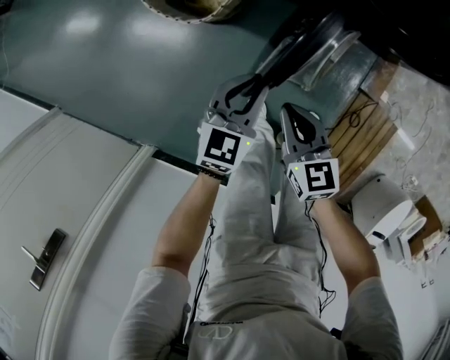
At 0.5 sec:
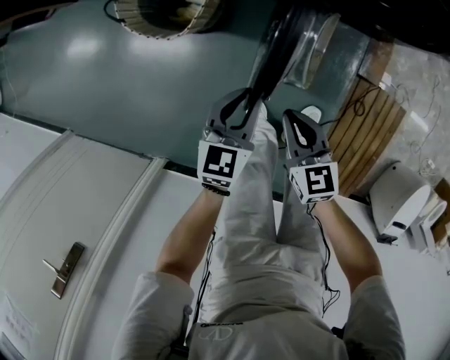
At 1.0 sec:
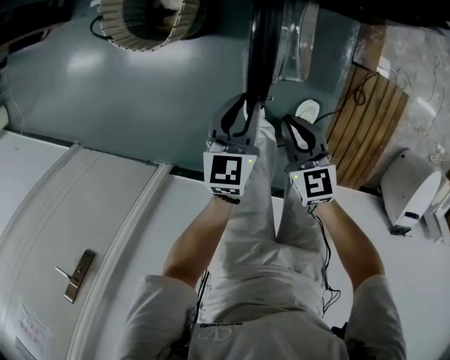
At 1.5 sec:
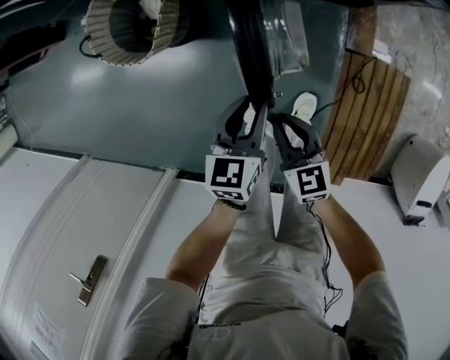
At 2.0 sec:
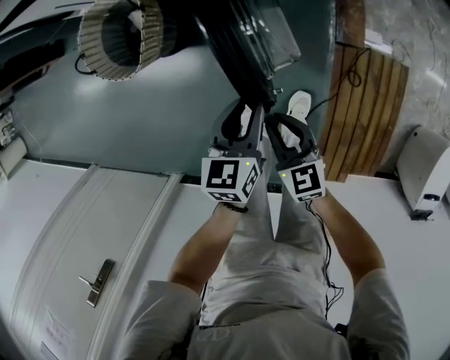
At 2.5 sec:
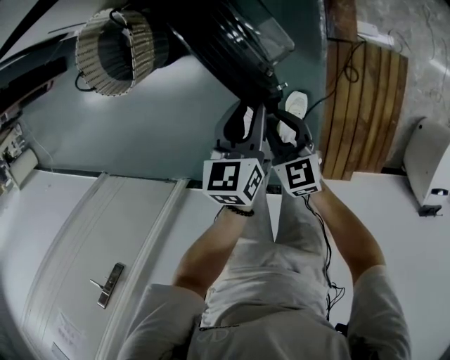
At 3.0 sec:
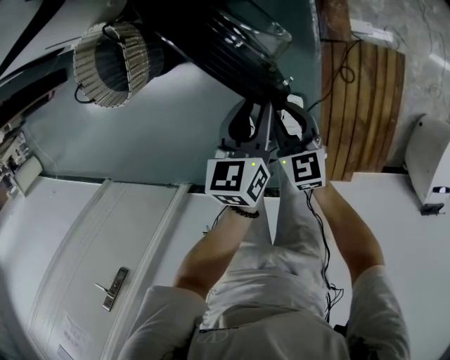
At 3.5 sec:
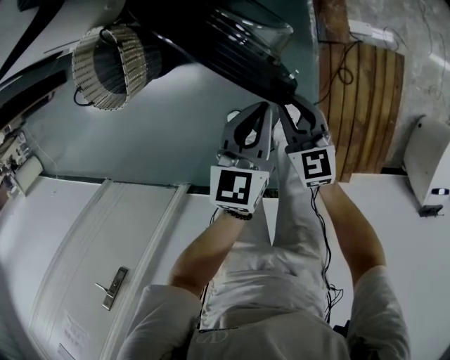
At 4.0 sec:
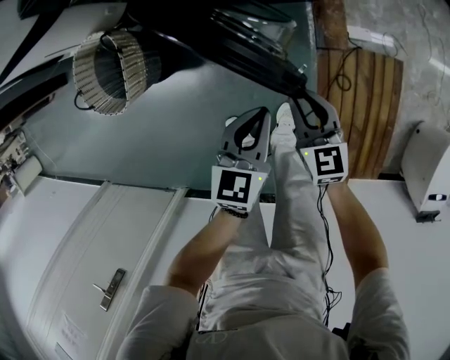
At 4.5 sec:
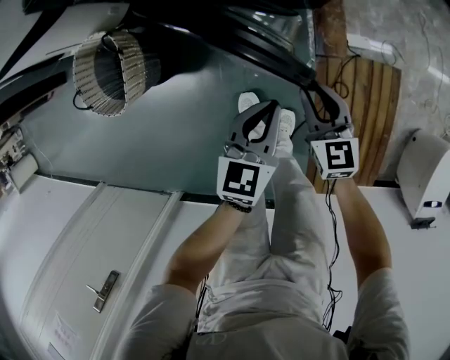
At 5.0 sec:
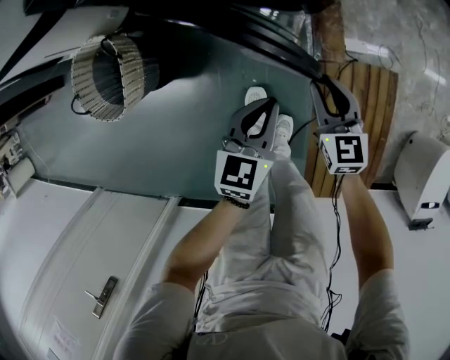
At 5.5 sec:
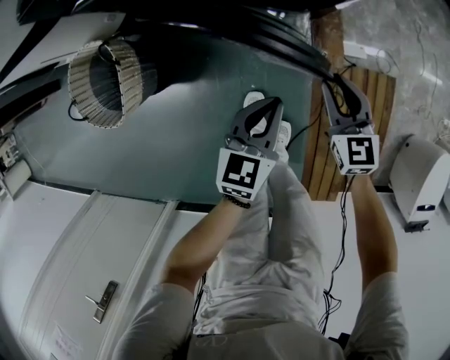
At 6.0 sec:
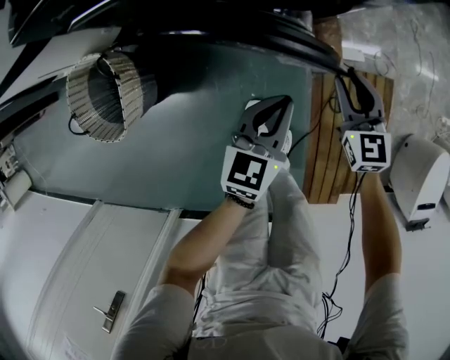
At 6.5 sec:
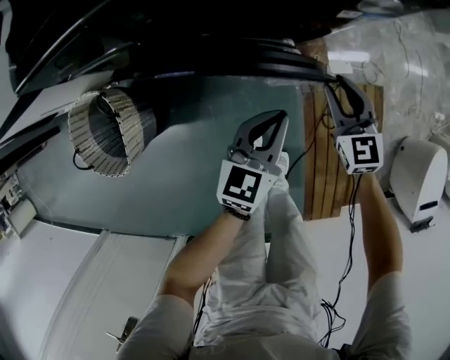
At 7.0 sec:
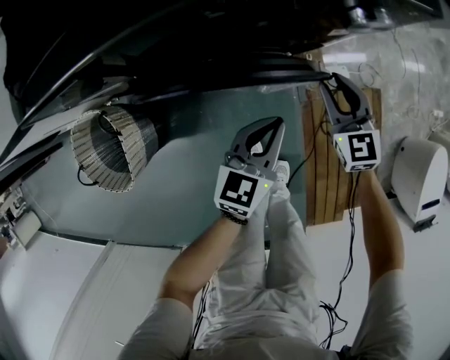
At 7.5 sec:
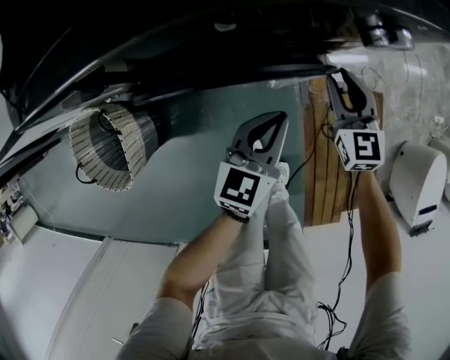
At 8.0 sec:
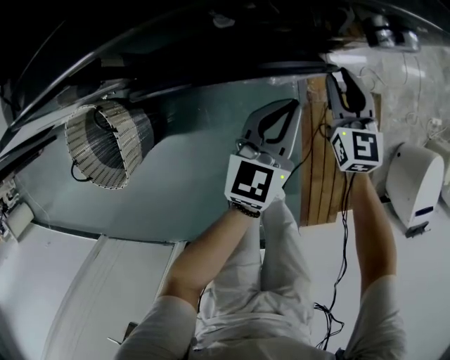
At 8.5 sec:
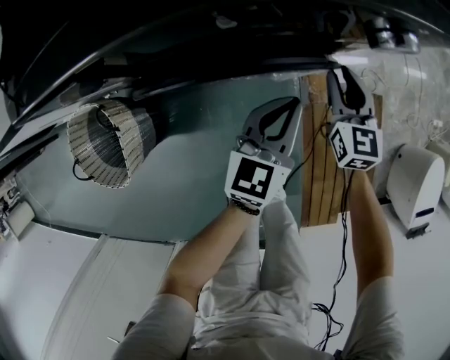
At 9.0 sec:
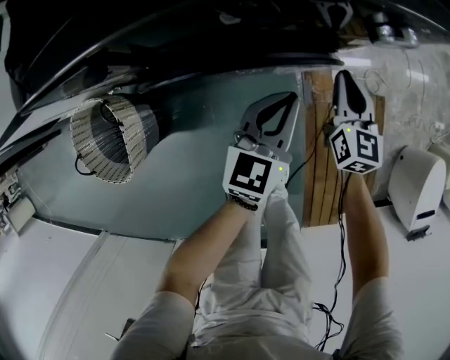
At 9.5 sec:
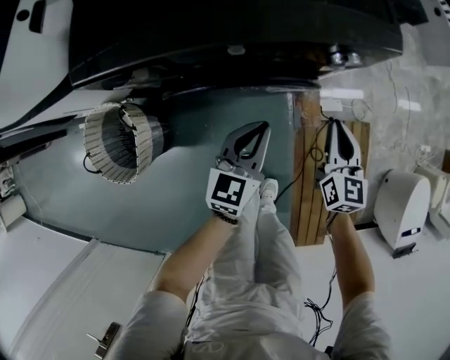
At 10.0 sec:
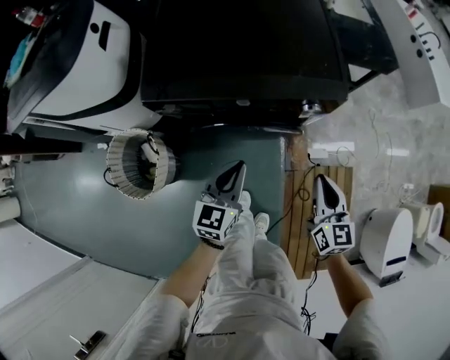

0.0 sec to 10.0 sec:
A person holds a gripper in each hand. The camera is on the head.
0.0 sec to 2.0 sec: The right gripper goes approximately 20 cm to the right and backward. Meanwhile the left gripper travels to the right by about 20 cm.
2.0 sec to 4.0 sec: The right gripper goes approximately 20 cm to the right and forward. The left gripper shifts approximately 15 cm to the right, and closes up.
4.0 sec to 6.0 sec: The right gripper goes roughly 20 cm forward and to the right. Meanwhile the left gripper travels forward by about 10 cm.
6.0 sec to 8.0 sec: The two grippers go approximately 10 cm forward.
8.0 sec to 10.0 sec: The right gripper is displaced upward and backward by some 30 cm, and closes its fingers. Meanwhile the left gripper heads upward and to the left, covering about 25 cm.

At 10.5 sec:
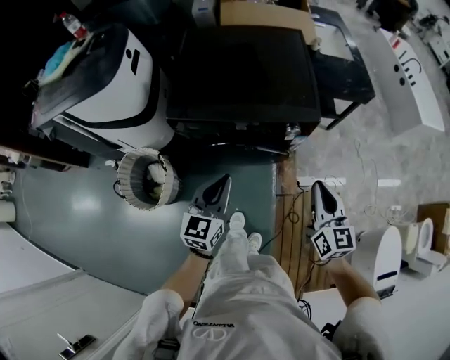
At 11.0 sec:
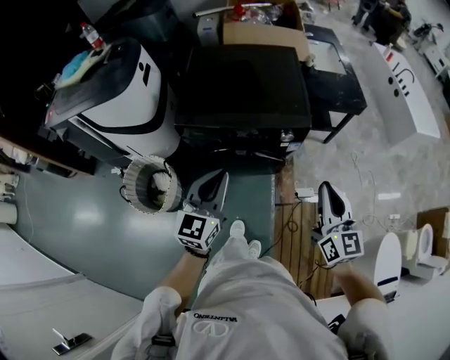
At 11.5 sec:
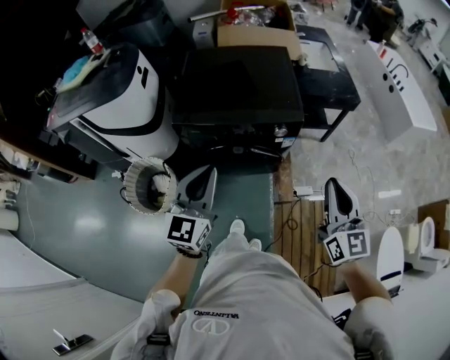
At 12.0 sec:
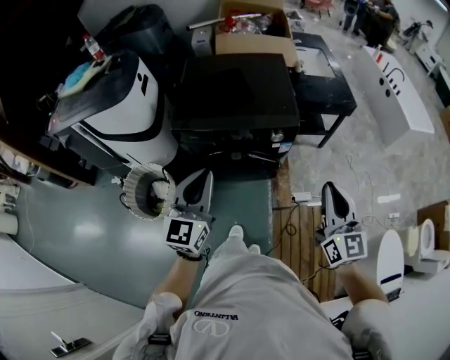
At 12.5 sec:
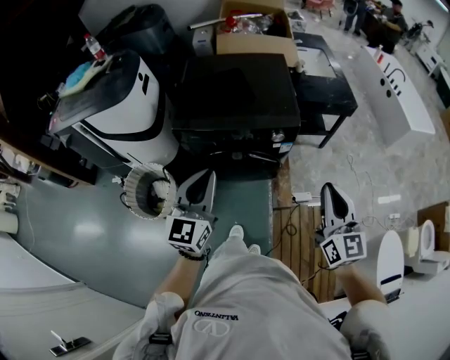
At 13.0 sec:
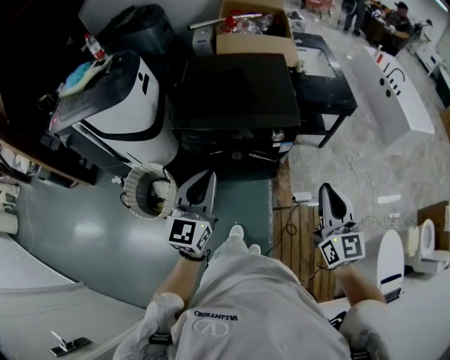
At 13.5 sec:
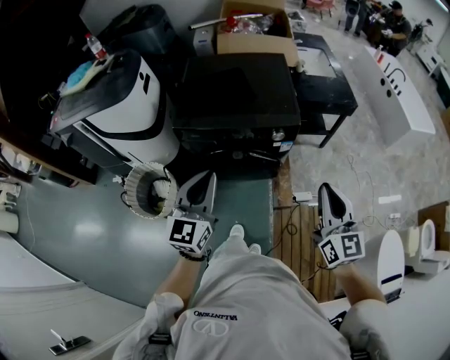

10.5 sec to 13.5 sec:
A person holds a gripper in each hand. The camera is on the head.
10.5 sec to 12.0 sec: The left gripper heads upward and backward, covering about 20 cm. The right gripper shifts approximately 20 cm upward, backward and to the right.
12.0 sec to 13.5 sec: Both grippers stay put.

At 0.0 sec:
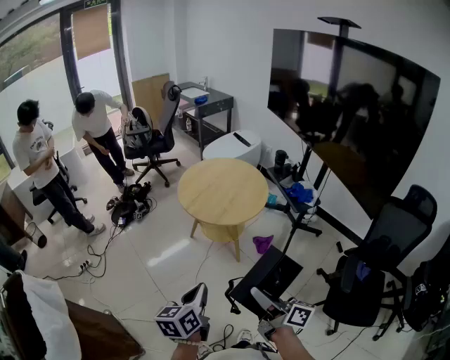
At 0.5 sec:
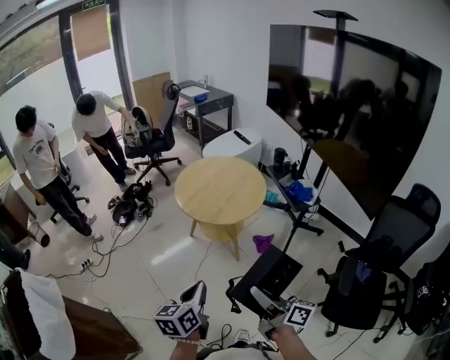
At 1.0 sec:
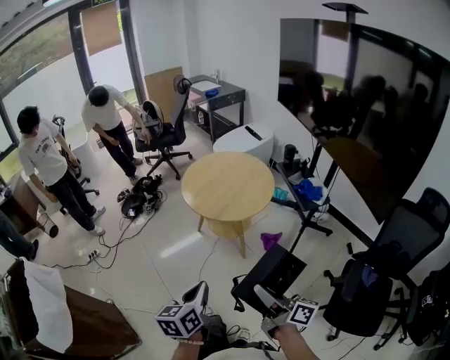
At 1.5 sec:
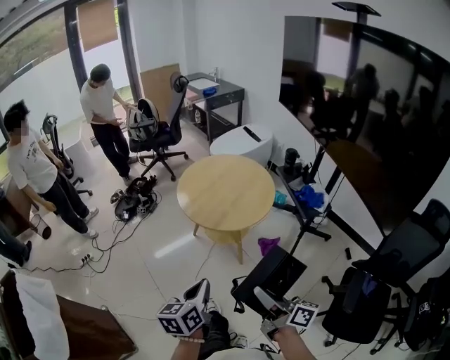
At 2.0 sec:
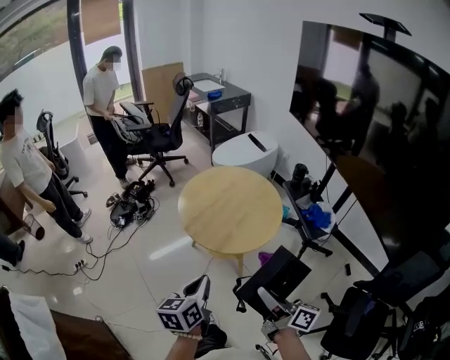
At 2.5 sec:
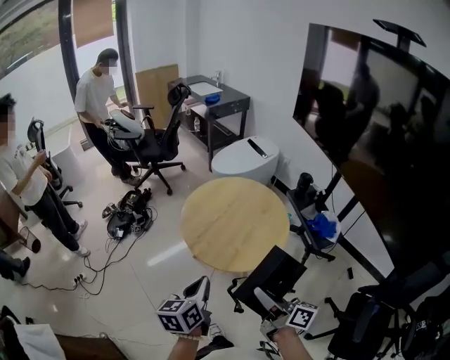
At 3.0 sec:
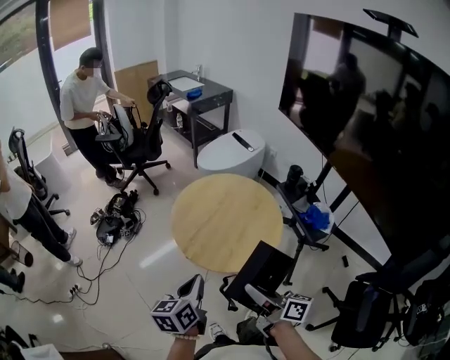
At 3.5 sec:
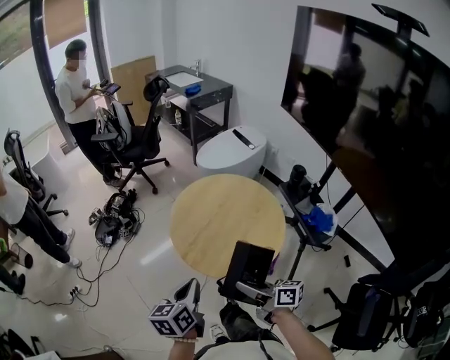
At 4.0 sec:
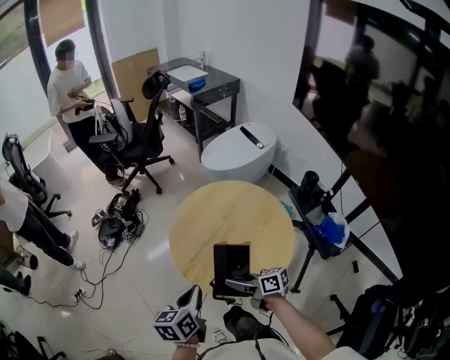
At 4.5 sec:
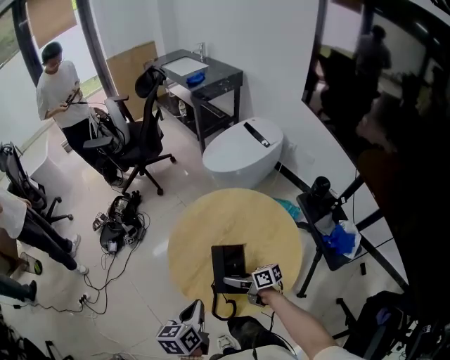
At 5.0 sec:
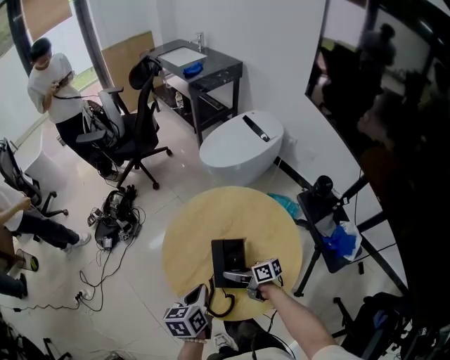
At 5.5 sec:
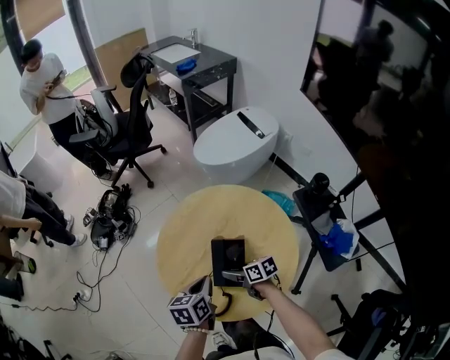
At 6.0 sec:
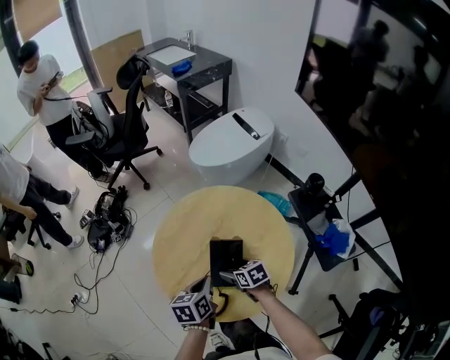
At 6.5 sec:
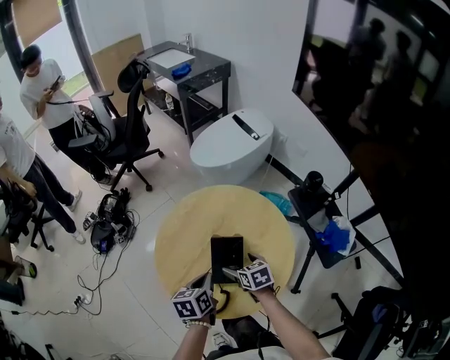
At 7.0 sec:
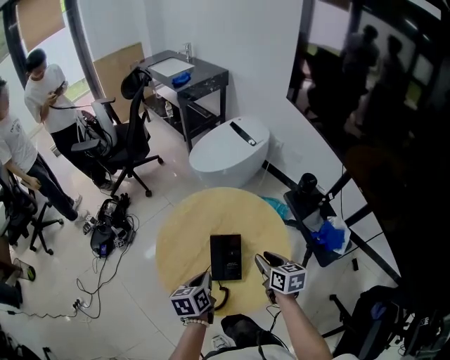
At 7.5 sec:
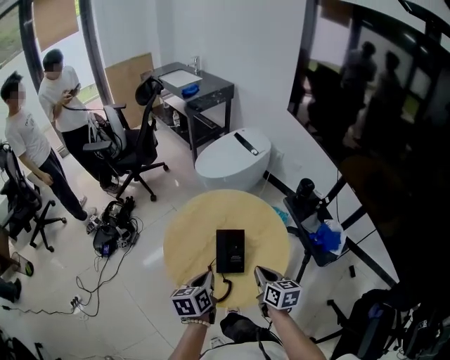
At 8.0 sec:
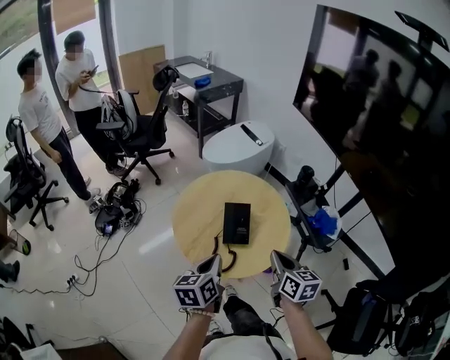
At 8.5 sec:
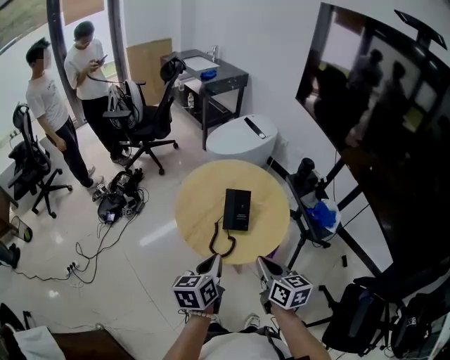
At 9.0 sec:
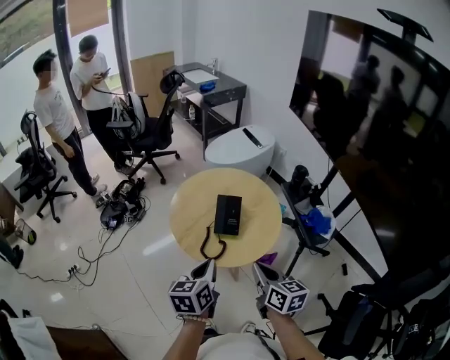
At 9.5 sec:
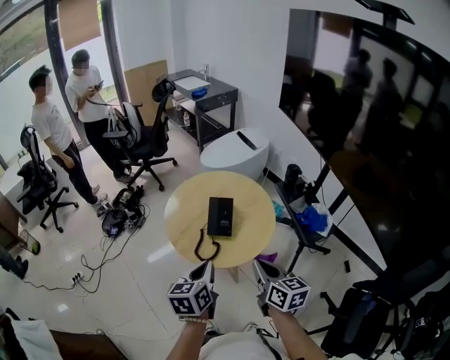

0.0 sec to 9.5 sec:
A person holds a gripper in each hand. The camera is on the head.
0.0 sec to 2.0 sec: Both grippers travel together forward, some 20 cm.
2.0 sec to 4.0 sec: The left gripper heads forward, covering some 20 cm; the right gripper shifts about 35 cm forward and downward, and swivels roughly 40 degrees.
4.0 sec to 5.5 sec: The left gripper is displaced to the right, downward and forward by approximately 20 cm. The right gripper heads downward, forward and to the right, covering some 20 cm, and turns by approximately 20 degrees.
5.5 sec to 7.5 sec: The left gripper moves approximately 5 cm. The right gripper moves upward, some 15 cm, changes its angle by some 40 degrees, and closes its fingers.
7.5 sec to 9.5 sec: The two grippers go some 20 cm backward and upward.

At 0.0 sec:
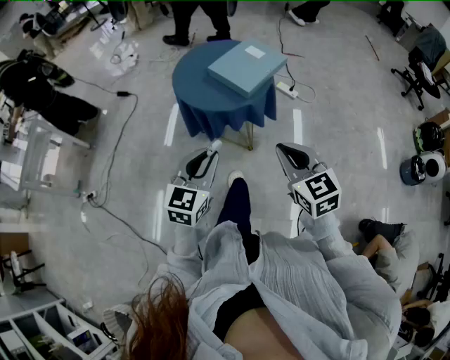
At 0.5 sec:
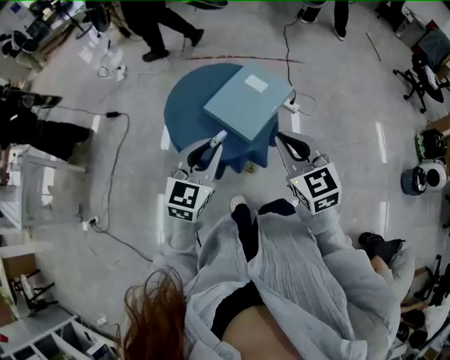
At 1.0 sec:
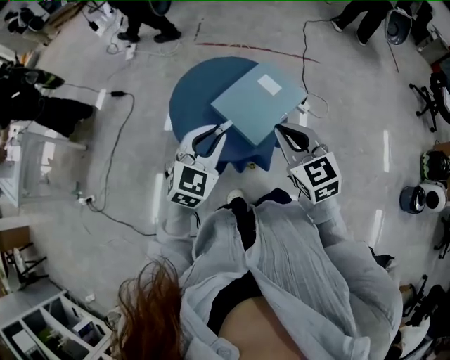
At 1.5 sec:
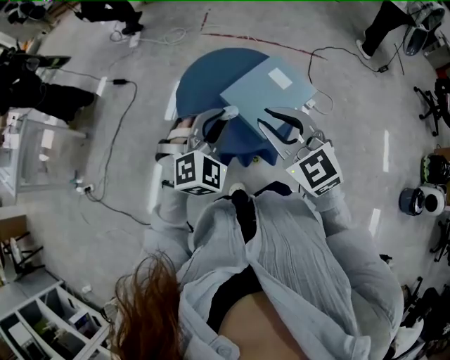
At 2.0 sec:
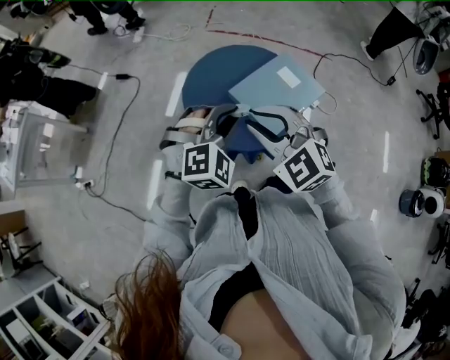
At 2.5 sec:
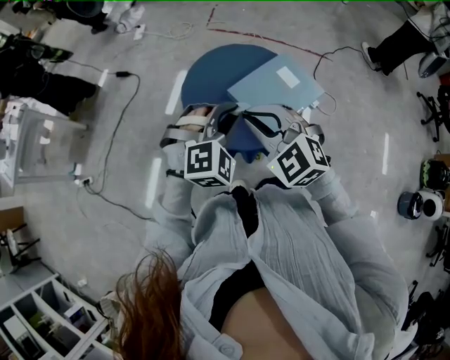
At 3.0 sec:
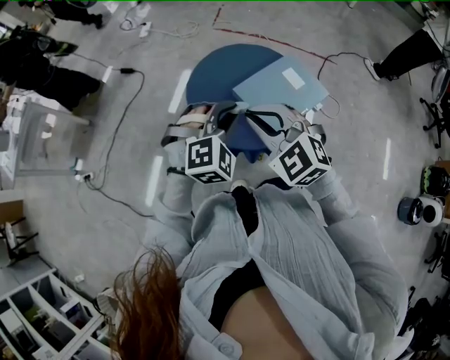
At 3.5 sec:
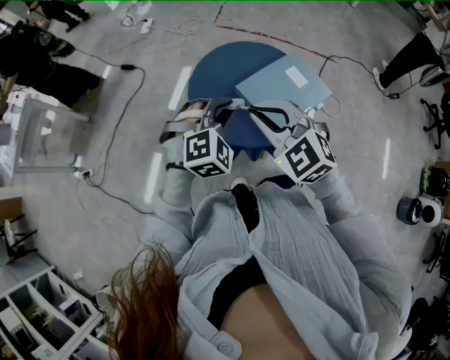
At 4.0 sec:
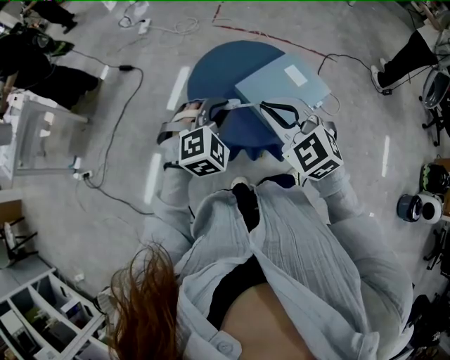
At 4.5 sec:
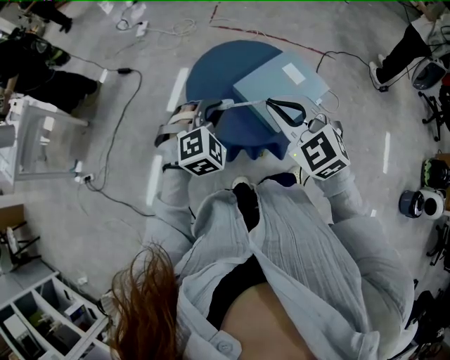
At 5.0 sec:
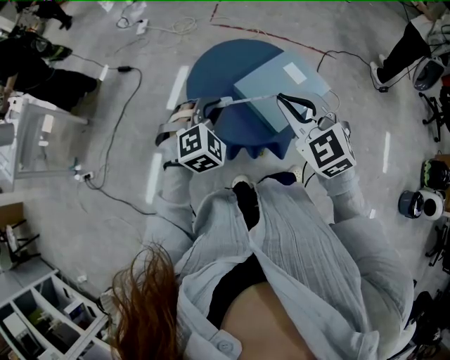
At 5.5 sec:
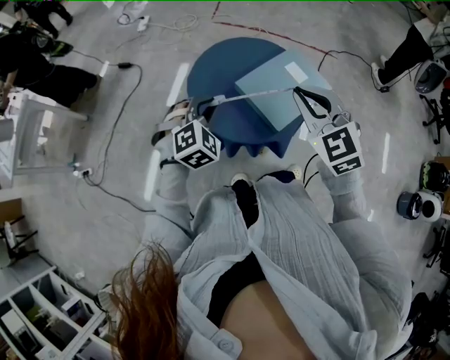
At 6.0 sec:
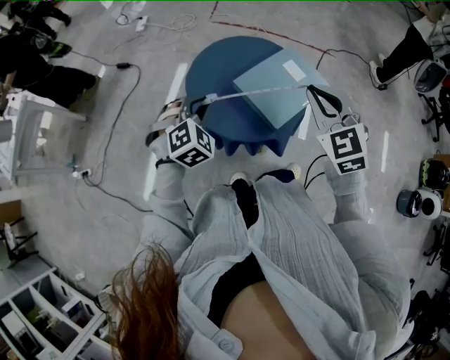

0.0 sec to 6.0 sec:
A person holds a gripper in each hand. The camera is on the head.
0.0 sec to 2.0 sec: The right gripper shifts roughly 30 cm forward and to the left, rotates approximately 40 degrees, and opens up; the left gripper is displaced forward by some 25 cm, and rolls clockwise, seen from behind, by some 50 degrees.
2.0 sec to 4.0 sec: The left gripper shifts by some 5 cm.
4.0 sec to 6.0 sec: The left gripper travels to the left by approximately 5 cm. The right gripper heads to the right, covering some 10 cm, and rotates about 20 degrees.
